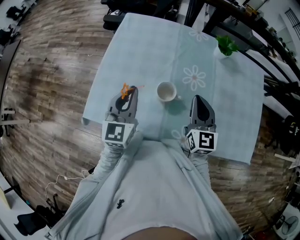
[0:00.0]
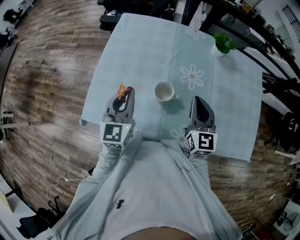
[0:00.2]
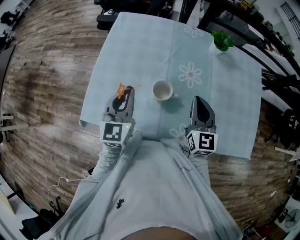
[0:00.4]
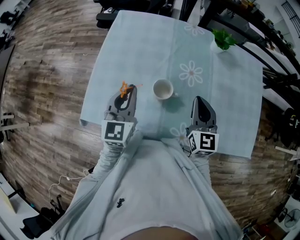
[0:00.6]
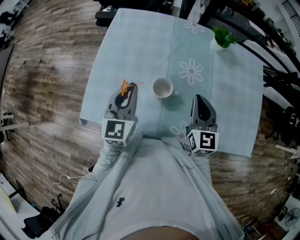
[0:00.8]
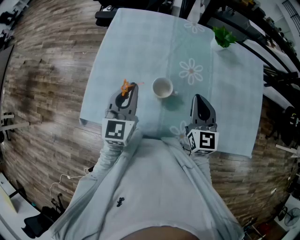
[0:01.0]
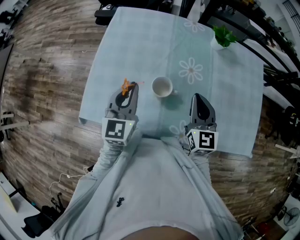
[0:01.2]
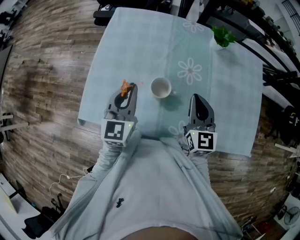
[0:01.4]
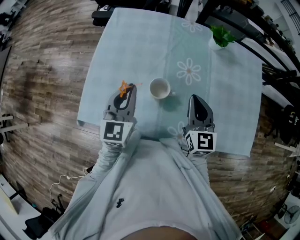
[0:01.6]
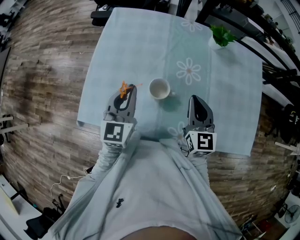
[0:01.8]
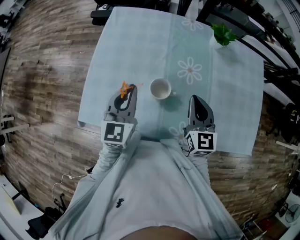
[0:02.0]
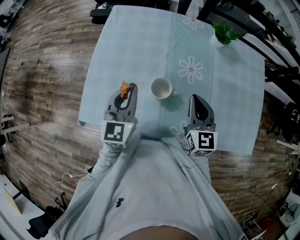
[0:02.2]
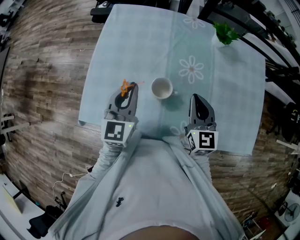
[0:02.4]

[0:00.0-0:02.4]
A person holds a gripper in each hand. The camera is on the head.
0:00.0 to 0:02.4: The grippers make only small movements.

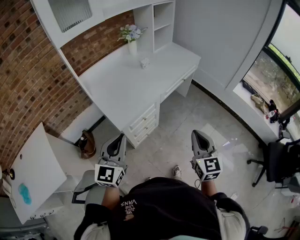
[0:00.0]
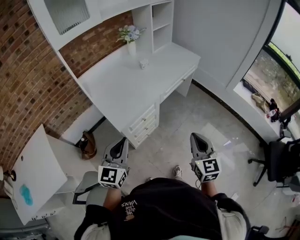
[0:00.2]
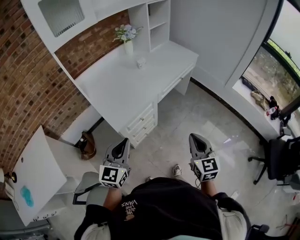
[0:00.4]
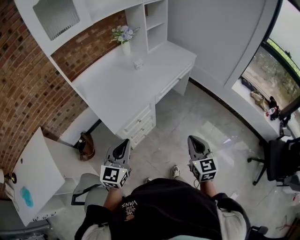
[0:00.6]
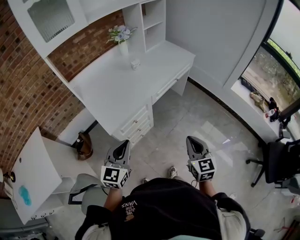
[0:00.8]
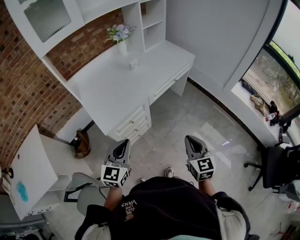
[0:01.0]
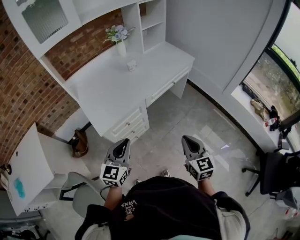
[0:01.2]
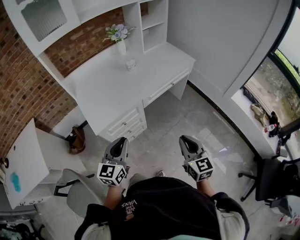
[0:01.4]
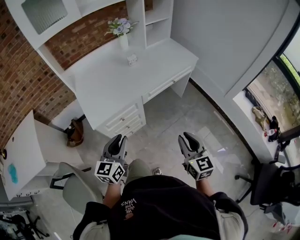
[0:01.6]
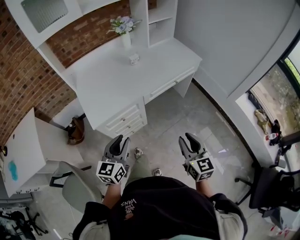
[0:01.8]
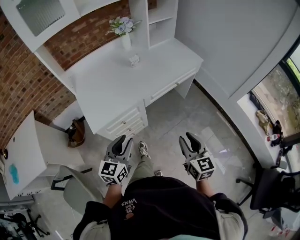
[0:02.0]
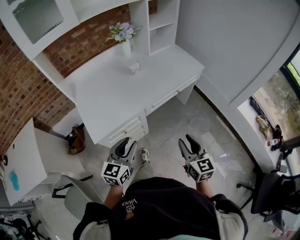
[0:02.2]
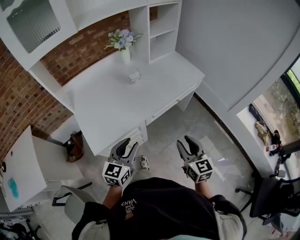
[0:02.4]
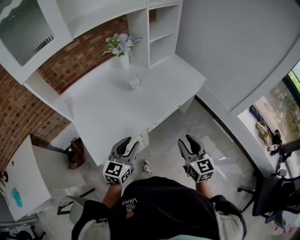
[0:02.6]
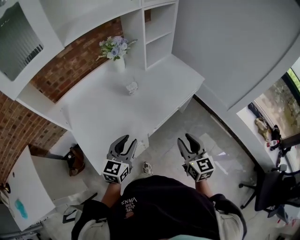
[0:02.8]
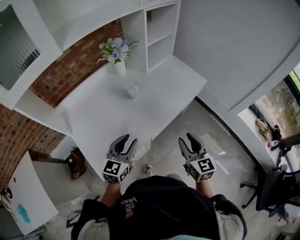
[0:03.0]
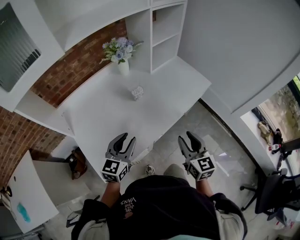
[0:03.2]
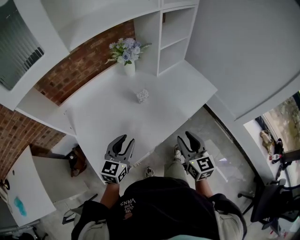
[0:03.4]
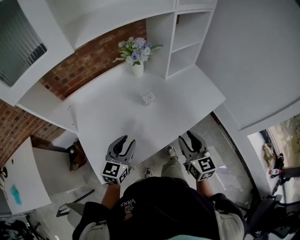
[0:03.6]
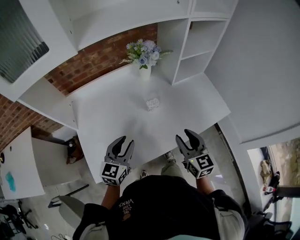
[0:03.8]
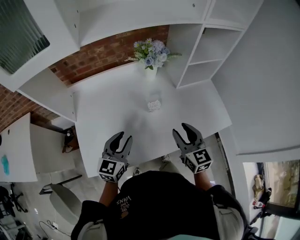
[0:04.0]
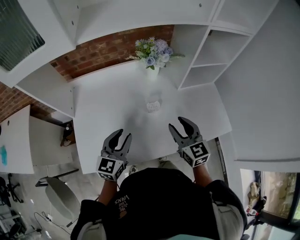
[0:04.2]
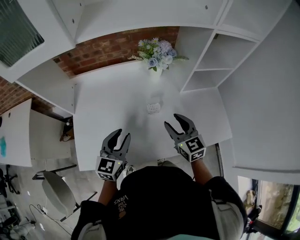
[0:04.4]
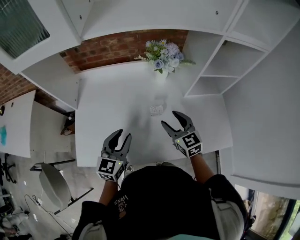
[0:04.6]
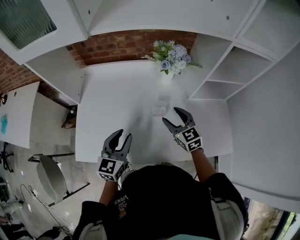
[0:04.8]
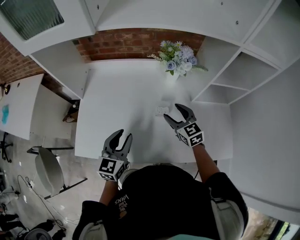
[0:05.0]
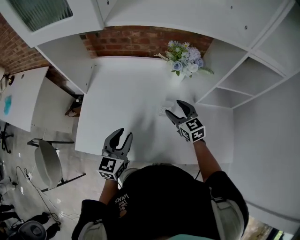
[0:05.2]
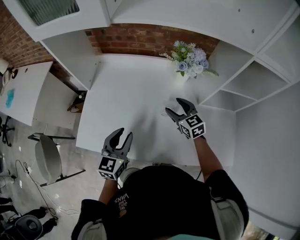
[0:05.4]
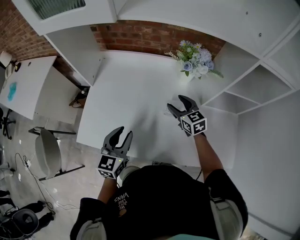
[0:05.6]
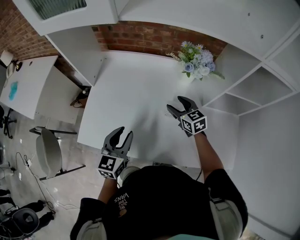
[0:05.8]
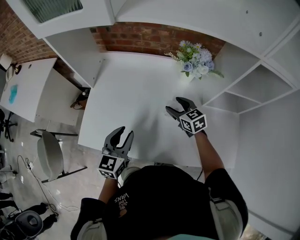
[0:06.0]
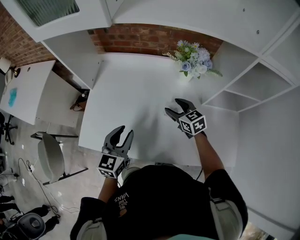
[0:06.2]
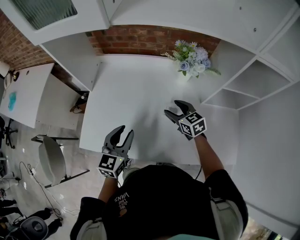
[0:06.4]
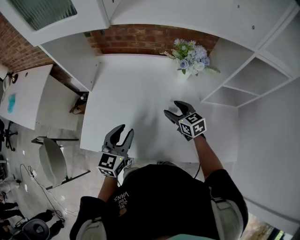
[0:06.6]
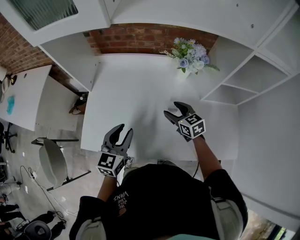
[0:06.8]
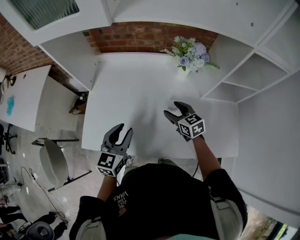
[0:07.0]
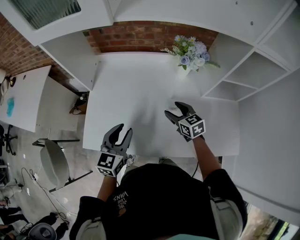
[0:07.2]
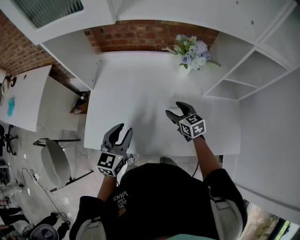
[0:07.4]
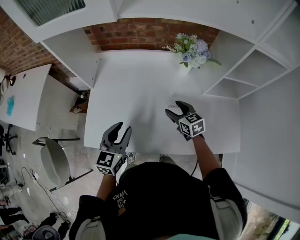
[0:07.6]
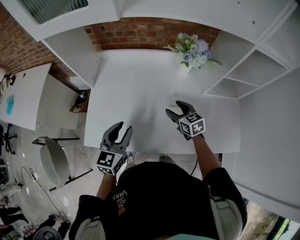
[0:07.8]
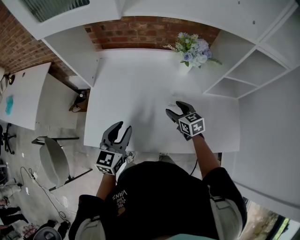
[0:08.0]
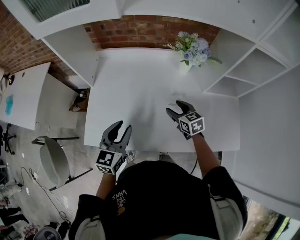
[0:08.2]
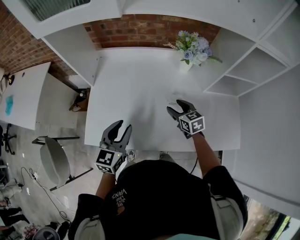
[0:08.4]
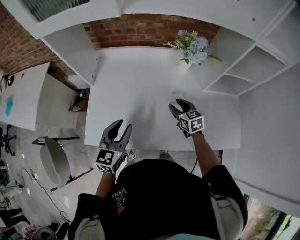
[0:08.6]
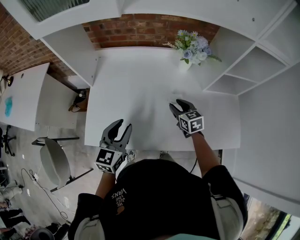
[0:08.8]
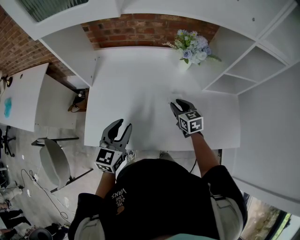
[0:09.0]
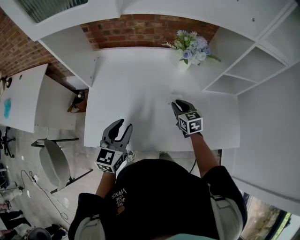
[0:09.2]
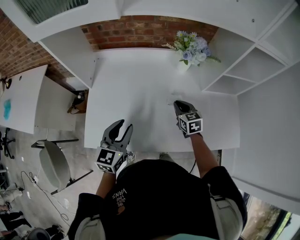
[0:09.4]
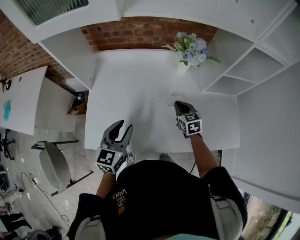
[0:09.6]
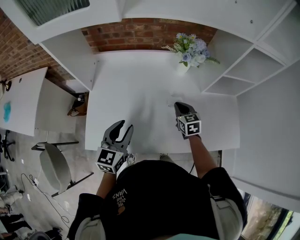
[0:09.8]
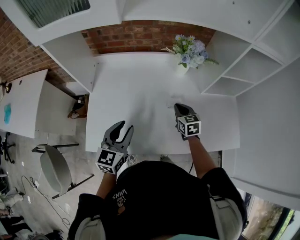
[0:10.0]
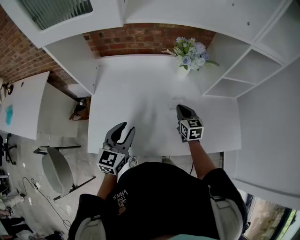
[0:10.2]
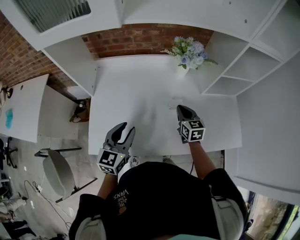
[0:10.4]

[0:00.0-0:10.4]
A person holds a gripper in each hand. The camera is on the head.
0:00.0 to 0:01.4: The left gripper is displaced to the right, downward and forward by approximately 20 cm; the right gripper is displaced to the right, forward and downward by some 15 cm.
0:01.4 to 0:03.0: The grippers both shift forward by about 30 cm. The right gripper opens, while the left gripper opens.
0:03.0 to 0:04.4: The left gripper moves about 15 cm, and swivels about 40 degrees. Meanwhile the right gripper changes place by approximately 30 cm, and turns by some 40 degrees.
0:04.4 to 0:06.0: The right gripper goes roughly 15 cm forward and downward, and turns by some 30 degrees, while the left gripper rotates approximately 20 degrees.
0:06.0 to 0:07.4: The right gripper travels backward by about 5 cm.
0:07.4 to 0:09.0: The right gripper closes its fingers.
0:09.0 to 0:10.4: The right gripper closes.

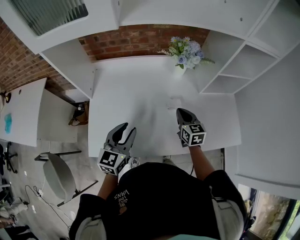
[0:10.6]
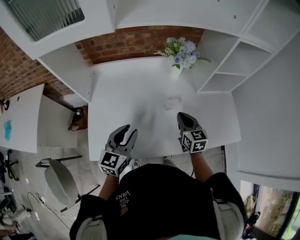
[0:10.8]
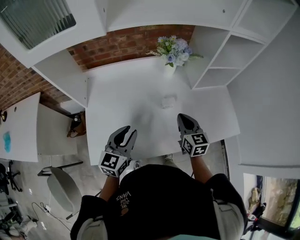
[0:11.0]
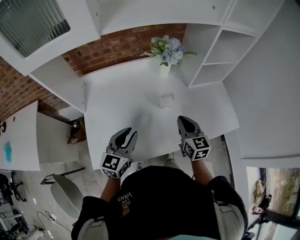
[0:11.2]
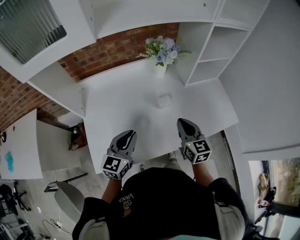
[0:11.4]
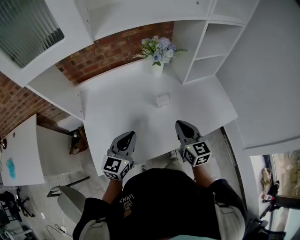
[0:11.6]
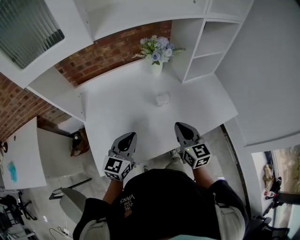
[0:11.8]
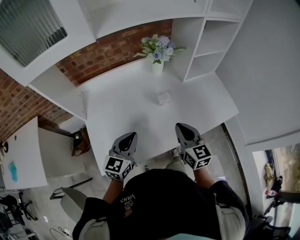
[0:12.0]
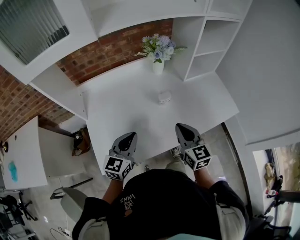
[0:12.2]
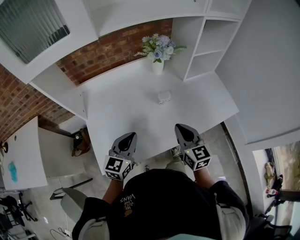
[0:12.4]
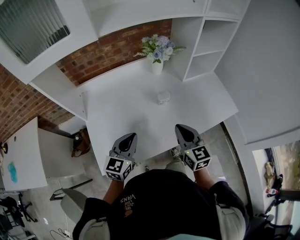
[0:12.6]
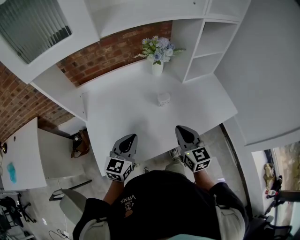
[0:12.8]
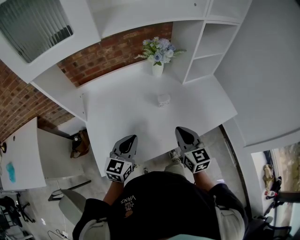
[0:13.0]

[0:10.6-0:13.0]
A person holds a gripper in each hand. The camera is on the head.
0:10.6 to 0:11.8: The right gripper moves backward and upward, approximately 15 cm. The left gripper closes its fingers.
0:11.8 to 0:13.0: The grippers make only small movements.

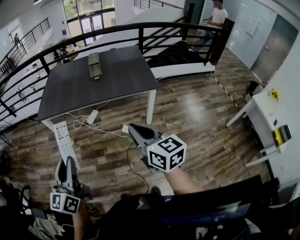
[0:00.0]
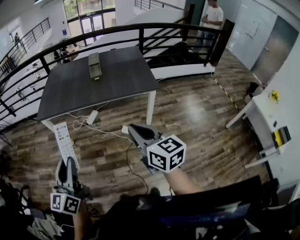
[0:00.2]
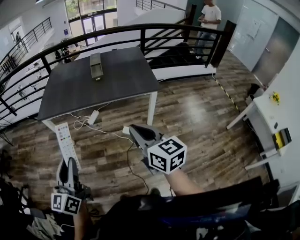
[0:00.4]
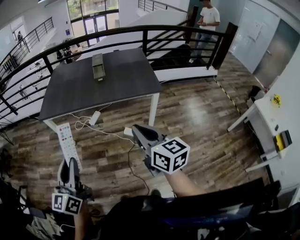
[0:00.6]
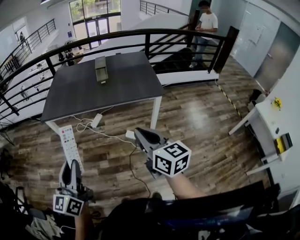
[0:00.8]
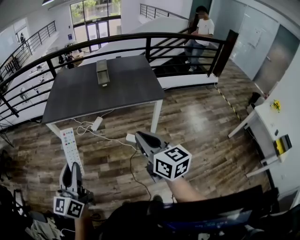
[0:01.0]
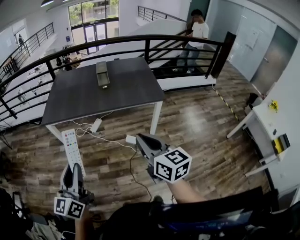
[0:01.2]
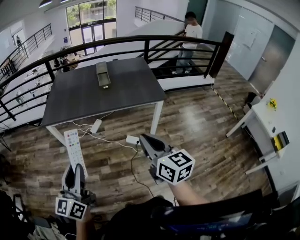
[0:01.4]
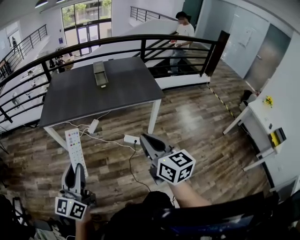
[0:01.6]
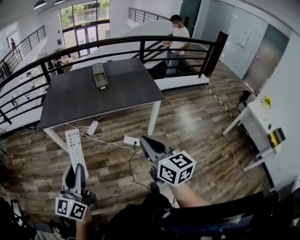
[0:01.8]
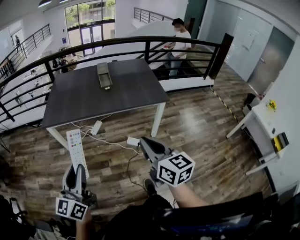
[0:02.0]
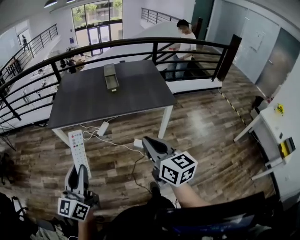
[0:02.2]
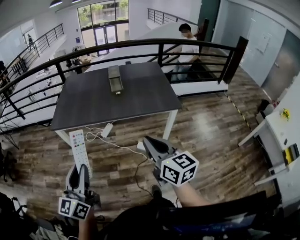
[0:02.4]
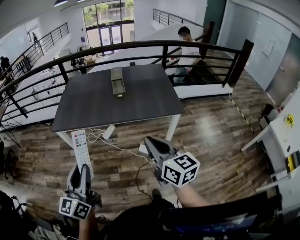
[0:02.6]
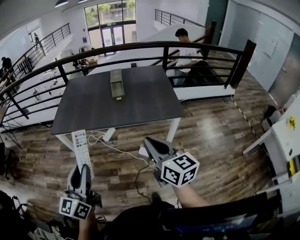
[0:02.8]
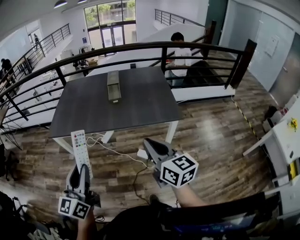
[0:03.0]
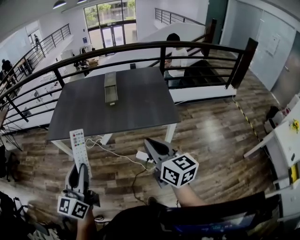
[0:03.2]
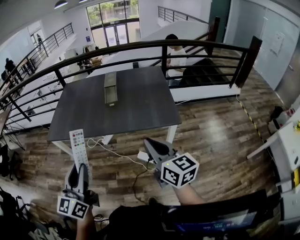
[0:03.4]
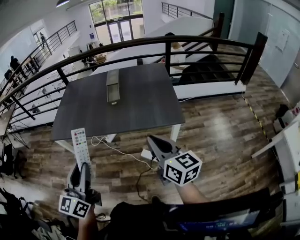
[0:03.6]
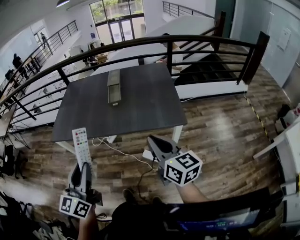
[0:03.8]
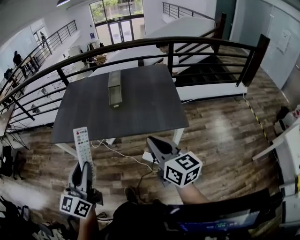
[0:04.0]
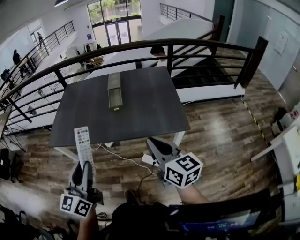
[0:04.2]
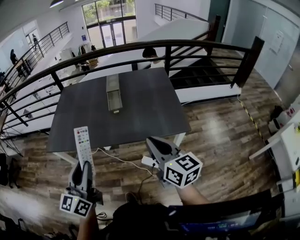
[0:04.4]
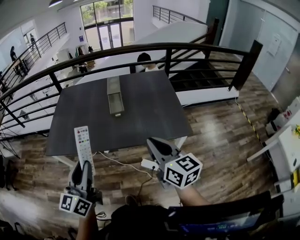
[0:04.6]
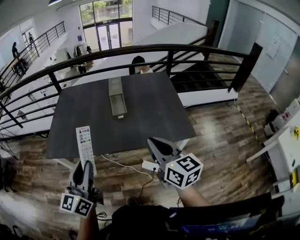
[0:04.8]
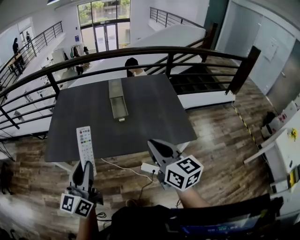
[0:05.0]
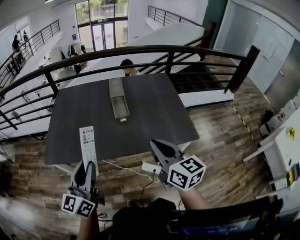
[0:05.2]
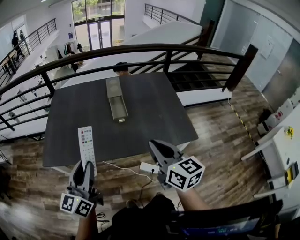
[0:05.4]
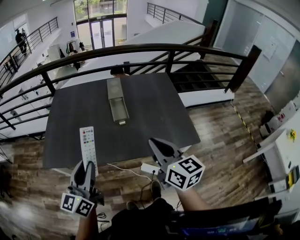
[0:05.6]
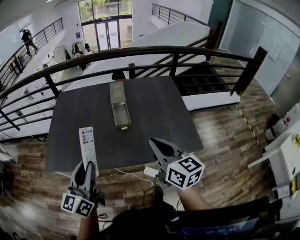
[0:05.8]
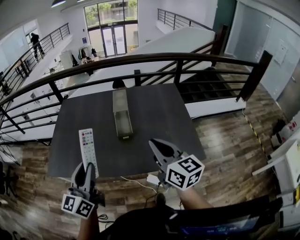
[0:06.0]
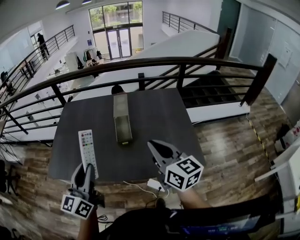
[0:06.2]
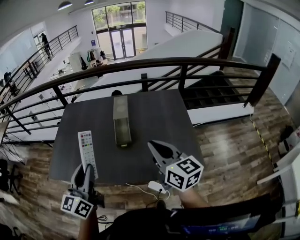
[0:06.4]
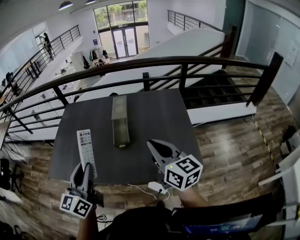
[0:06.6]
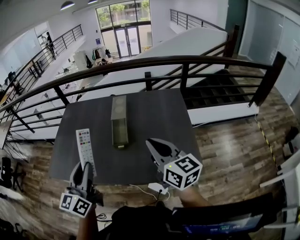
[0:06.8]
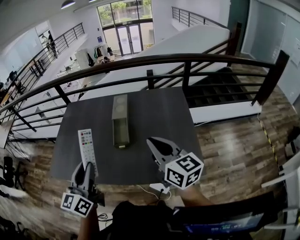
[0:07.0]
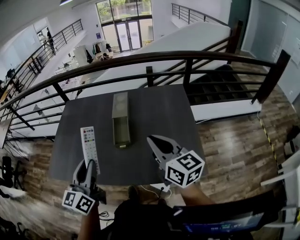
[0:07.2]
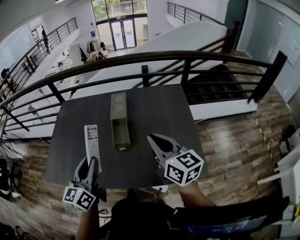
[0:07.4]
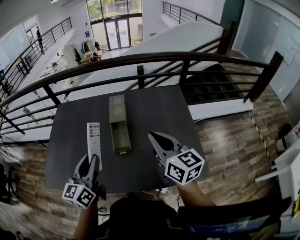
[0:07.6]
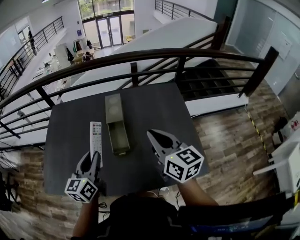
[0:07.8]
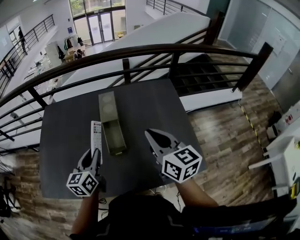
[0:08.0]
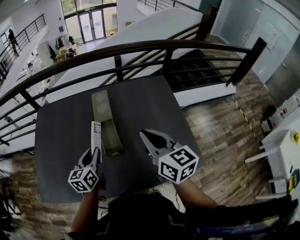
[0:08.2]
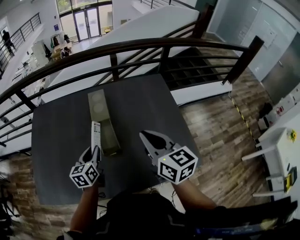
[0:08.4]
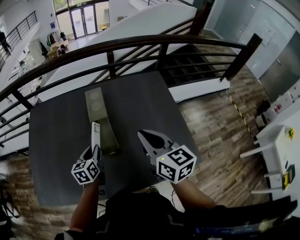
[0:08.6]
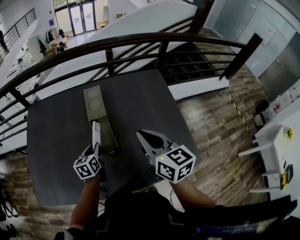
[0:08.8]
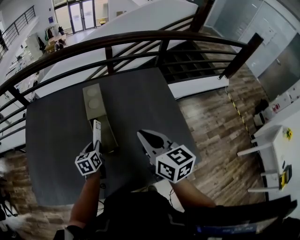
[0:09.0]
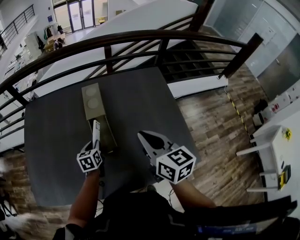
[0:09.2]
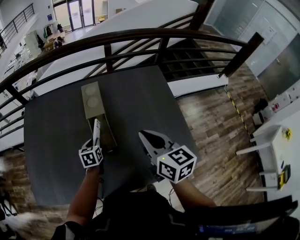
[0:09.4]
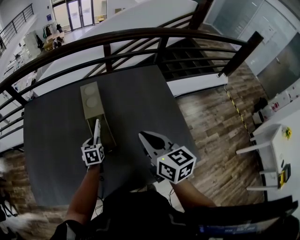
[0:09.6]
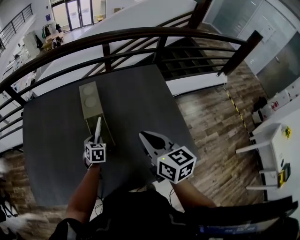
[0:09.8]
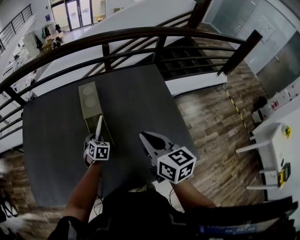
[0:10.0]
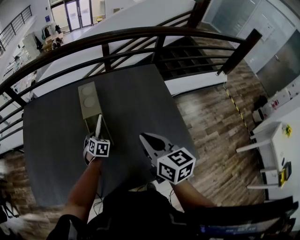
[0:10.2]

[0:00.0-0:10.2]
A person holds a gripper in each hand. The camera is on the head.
0:00.0 to 0:01.4: The grippers both shift to the left by approximately 10 cm.
0:01.4 to 0:03.0: The grippers both shift forward and to the right by roughly 20 cm.
0:03.0 to 0:04.4: Both grippers travel together forward, some 20 cm.
0:04.4 to 0:05.8: The left gripper is displaced forward by roughly 20 cm; the right gripper moves forward and to the left, approximately 25 cm.
0:05.8 to 0:07.2: The grippers both shift to the right and forward by about 20 cm.
0:07.2 to 0:08.8: The left gripper shifts approximately 40 cm forward and downward, and tips its fingers downward by some 30 degrees. Meanwhile the right gripper is displaced forward and to the left by roughly 15 cm.
0:08.8 to 0:10.2: The left gripper shifts roughly 10 cm downward and forward, and turns by some 40 degrees.
